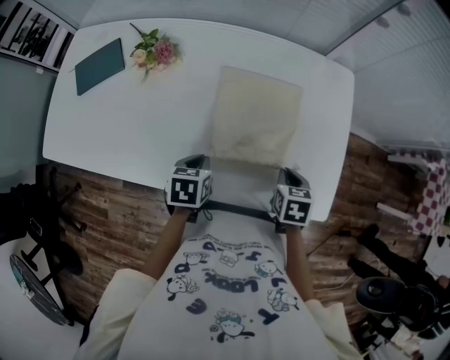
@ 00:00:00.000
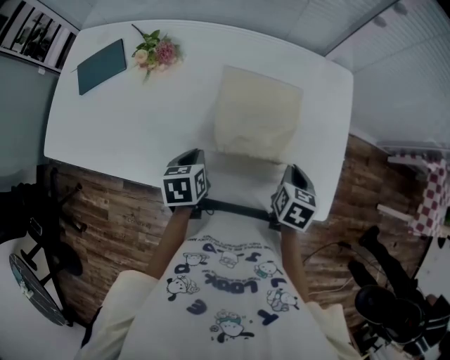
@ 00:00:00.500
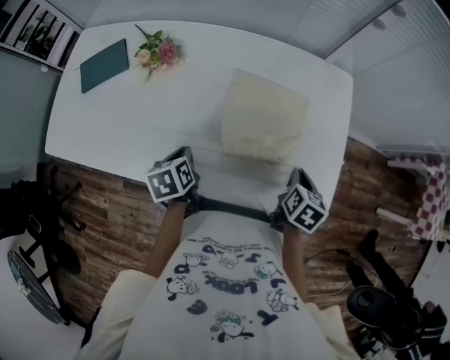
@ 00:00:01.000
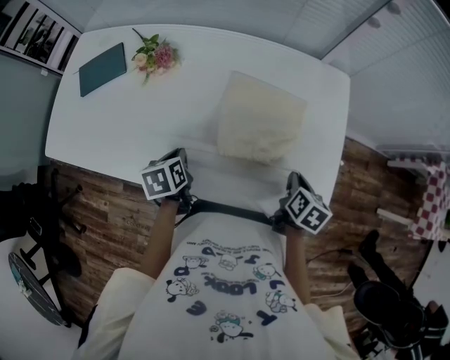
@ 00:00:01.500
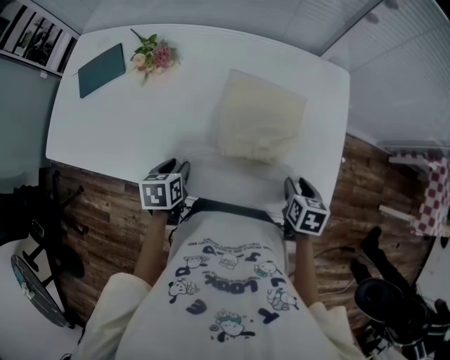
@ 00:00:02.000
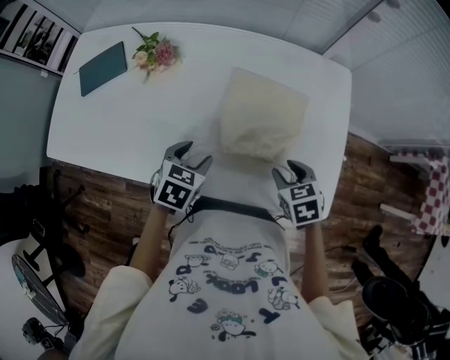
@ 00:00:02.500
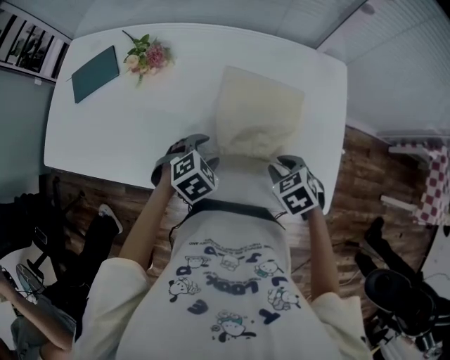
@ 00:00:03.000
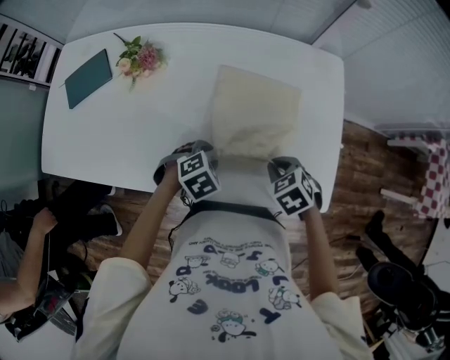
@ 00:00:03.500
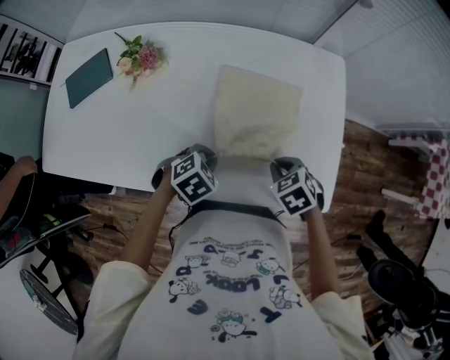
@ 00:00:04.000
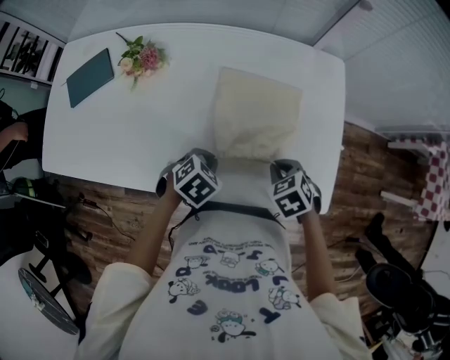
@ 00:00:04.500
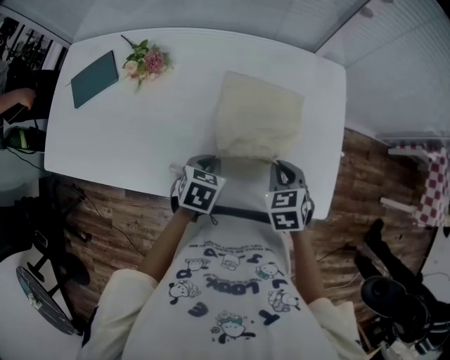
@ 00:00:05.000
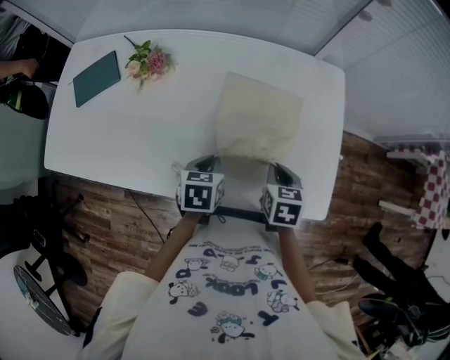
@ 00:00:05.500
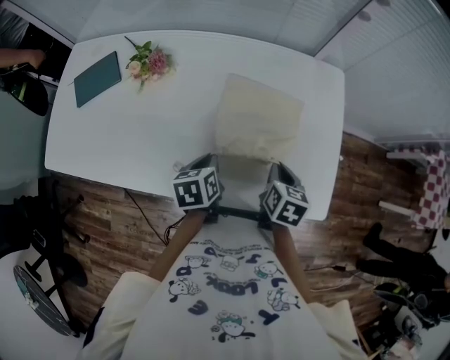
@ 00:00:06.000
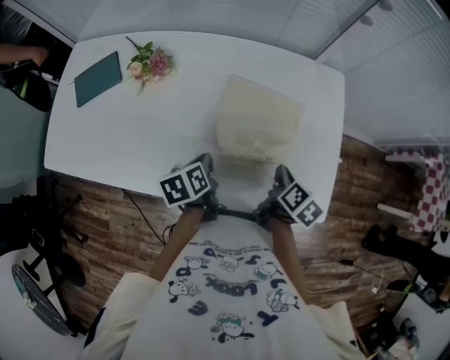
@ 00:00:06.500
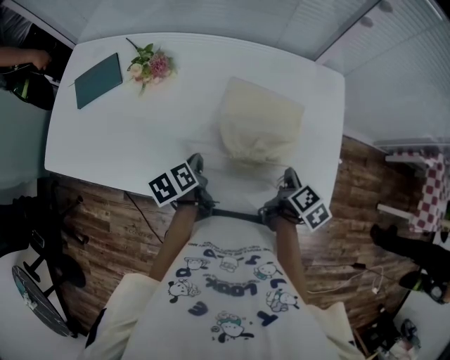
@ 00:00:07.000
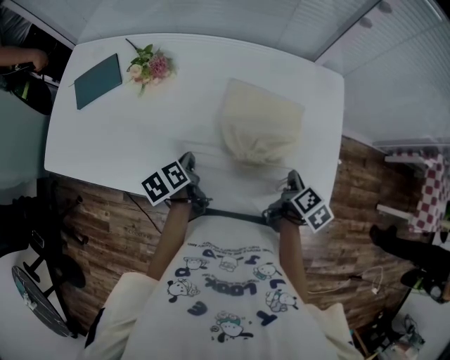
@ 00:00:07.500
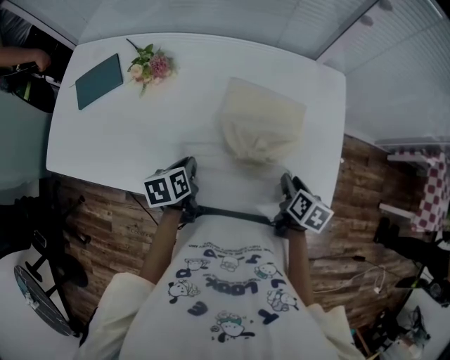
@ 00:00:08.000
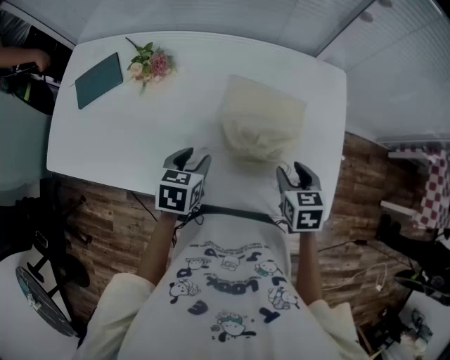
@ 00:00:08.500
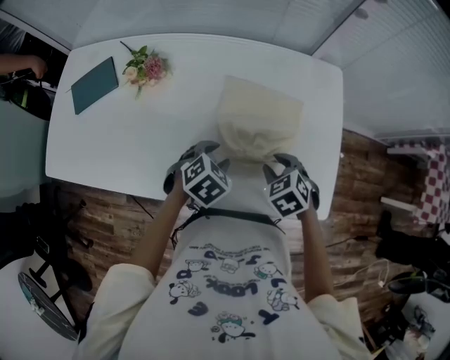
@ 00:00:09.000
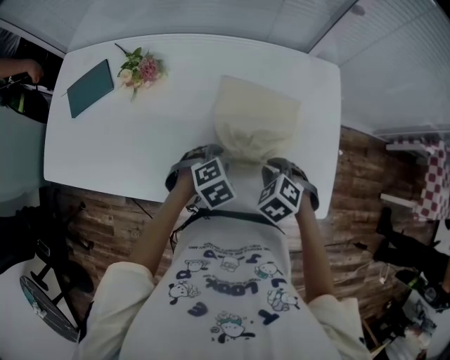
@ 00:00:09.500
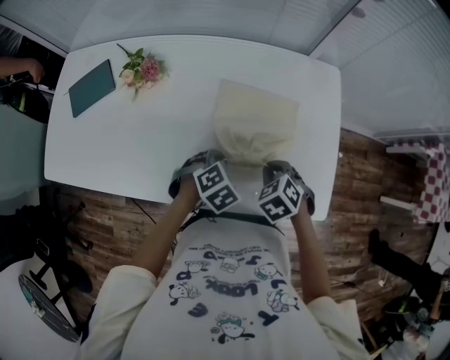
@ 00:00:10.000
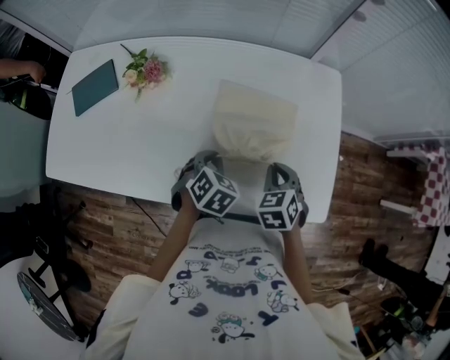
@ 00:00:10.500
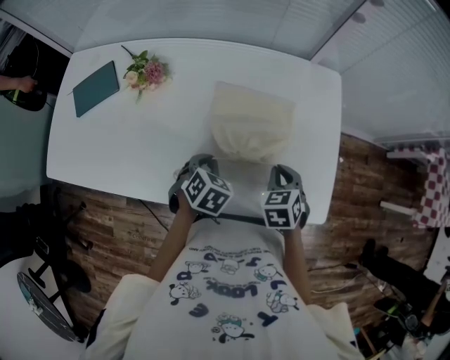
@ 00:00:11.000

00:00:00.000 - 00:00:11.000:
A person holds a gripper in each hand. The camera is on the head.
00:00:00.000 - 00:00:02.000: The left gripper is displaced to the left by about 5 cm, and opens its fingers. Meanwhile the right gripper travels to the right by approximately 5 cm, and opens up.
00:00:02.000 - 00:00:03.500: The right gripper goes approximately 10 cm to the left, twists some 40 degrees counterclockwise, seen from behind, and closes its fingers. Meanwhile the left gripper goes some 10 cm to the right, and twists roughly 70 degrees clockwise, seen from behind.
00:00:03.500 - 00:00:05.500: The left gripper rotates around the line of its fingers by some 60 degrees, counterclockwise from behind, and closes, while the right gripper swivels some 40 degrees.
00:00:05.500 - 00:00:07.500: The right gripper shifts about 10 cm to the right, and twists approximately 50 degrees clockwise, seen from behind; the left gripper moves to the left, about 10 cm, and twists approximately 40 degrees counterclockwise, seen from behind.
00:00:07.500 - 00:00:09.000: The left gripper travels to the right by roughly 10 cm, rolls clockwise, seen from behind, by some 90 degrees, and opens its fingers. The right gripper heads to the left, covering some 10 cm, rolls counterclockwise, seen from behind, by about 90 degrees, and opens up.
00:00:09.000 - 00:00:11.000: The right gripper turns by some 20 degrees, and closes its fingers, while the left gripper closes its fingers.

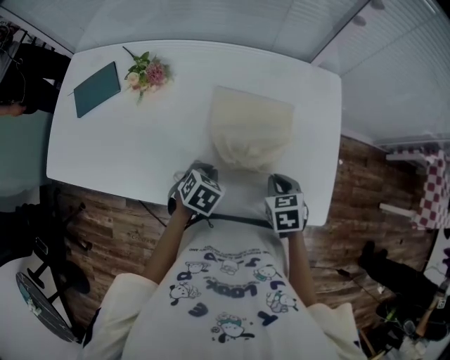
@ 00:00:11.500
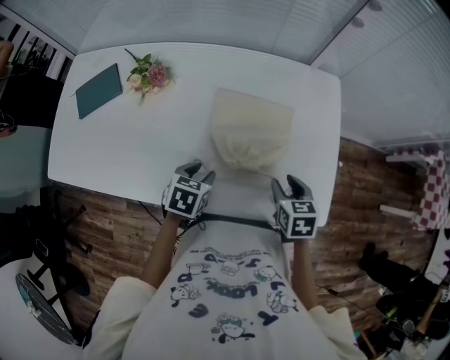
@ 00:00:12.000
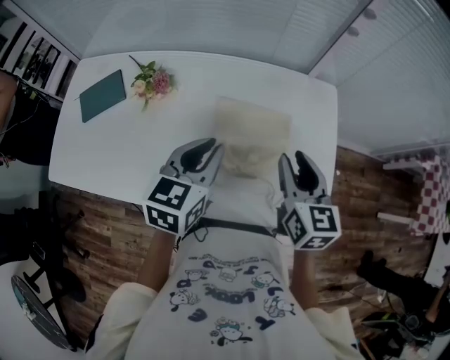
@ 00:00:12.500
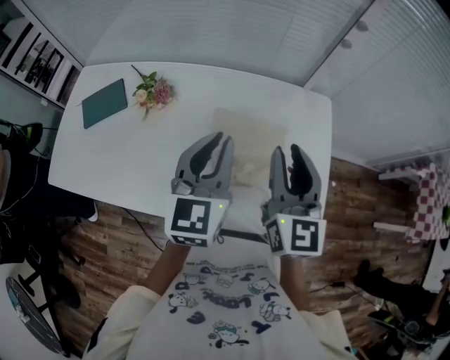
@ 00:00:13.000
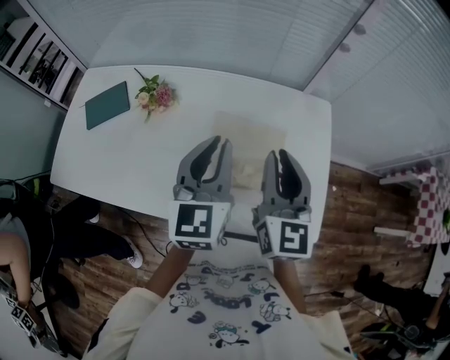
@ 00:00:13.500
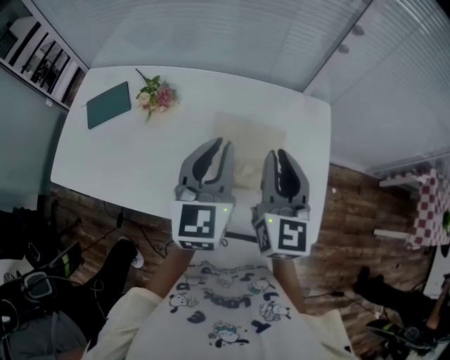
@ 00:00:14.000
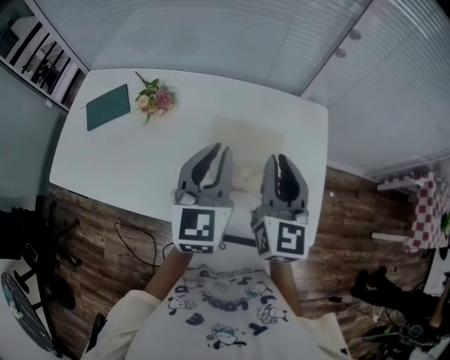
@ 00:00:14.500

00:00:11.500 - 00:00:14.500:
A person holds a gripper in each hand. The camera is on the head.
00:00:11.500 - 00:00:13.000: Both grippers travel together upward, some 30 cm. The left gripper points its fingers about 60 degrees further upward, and opens, then closes again. Meanwhile the right gripper points its fingers some 60 degrees further upward, and opens its fingers.
00:00:13.000 - 00:00:14.500: There are only small adjustments of the grippers.

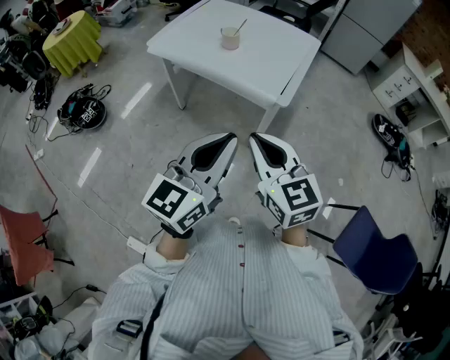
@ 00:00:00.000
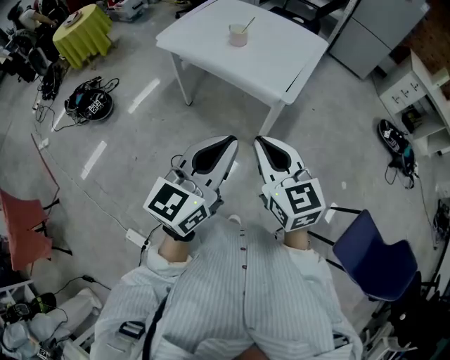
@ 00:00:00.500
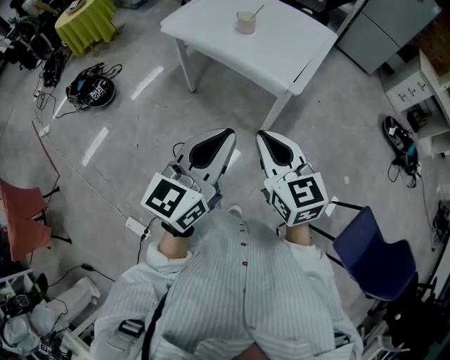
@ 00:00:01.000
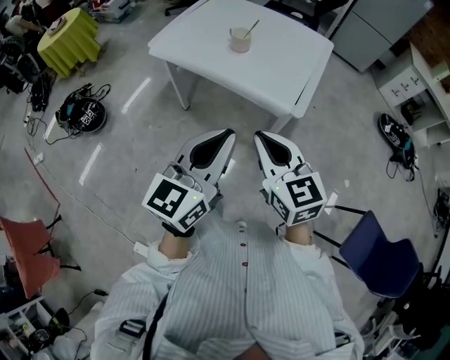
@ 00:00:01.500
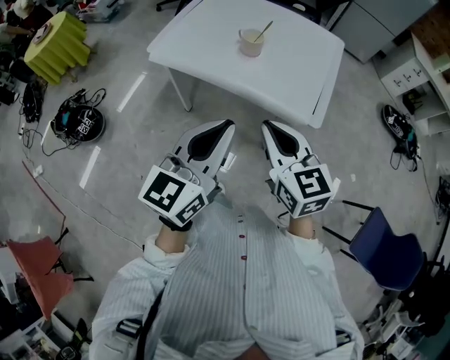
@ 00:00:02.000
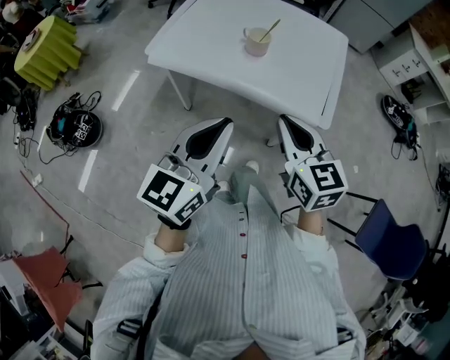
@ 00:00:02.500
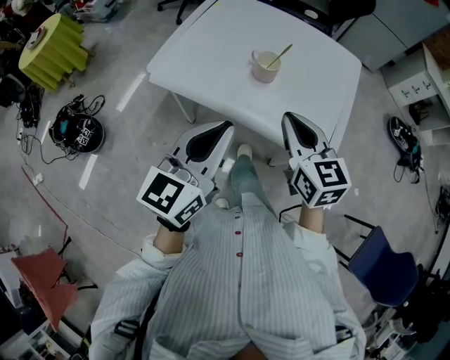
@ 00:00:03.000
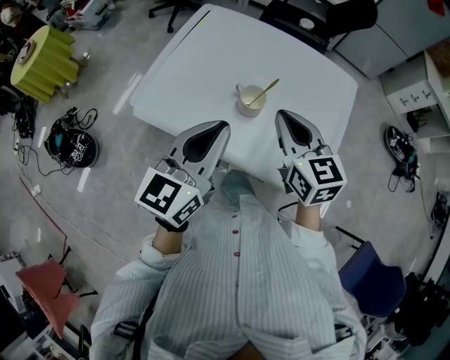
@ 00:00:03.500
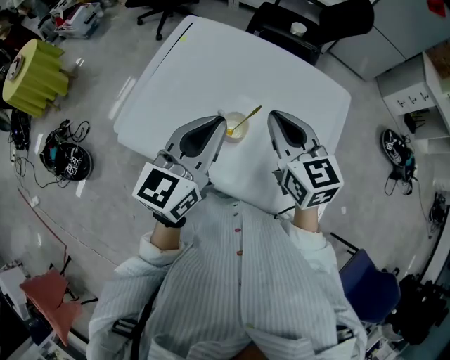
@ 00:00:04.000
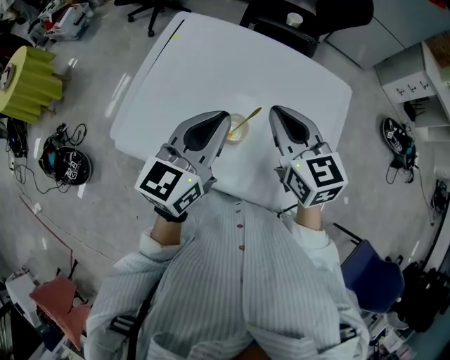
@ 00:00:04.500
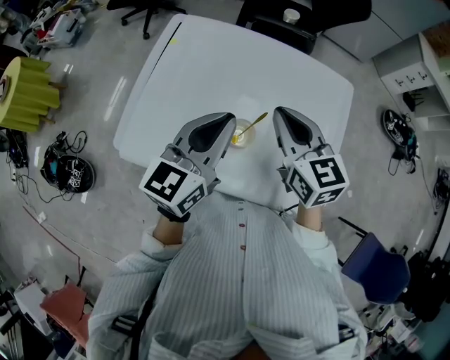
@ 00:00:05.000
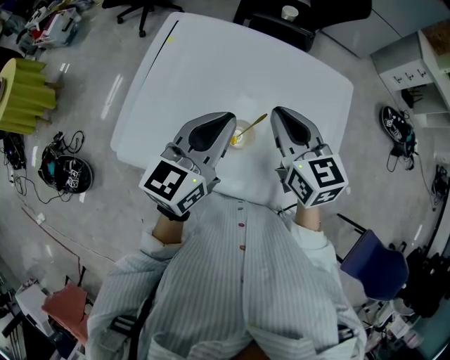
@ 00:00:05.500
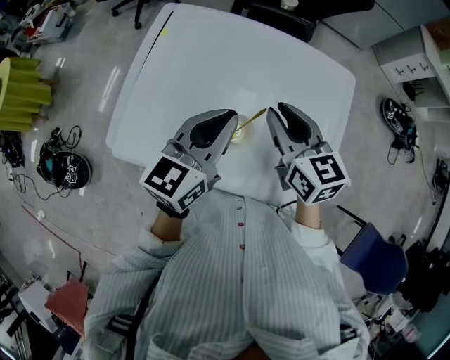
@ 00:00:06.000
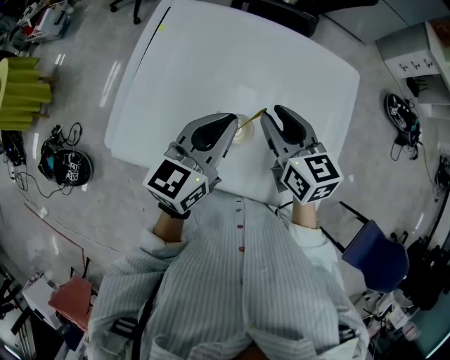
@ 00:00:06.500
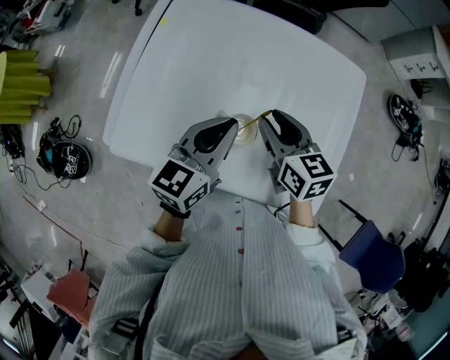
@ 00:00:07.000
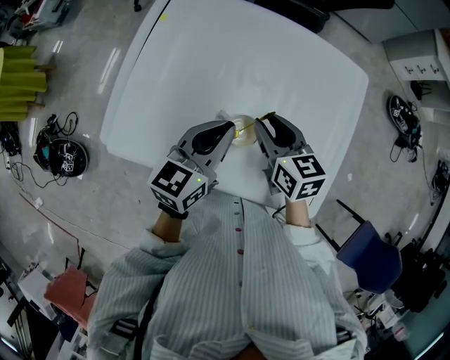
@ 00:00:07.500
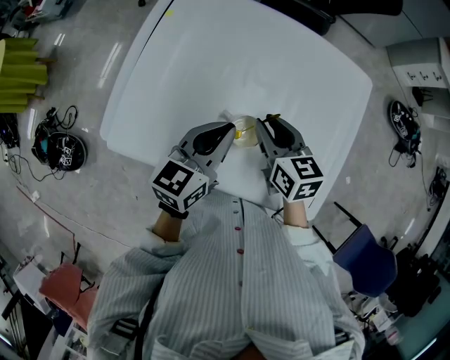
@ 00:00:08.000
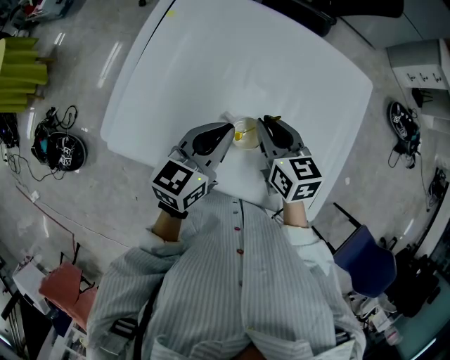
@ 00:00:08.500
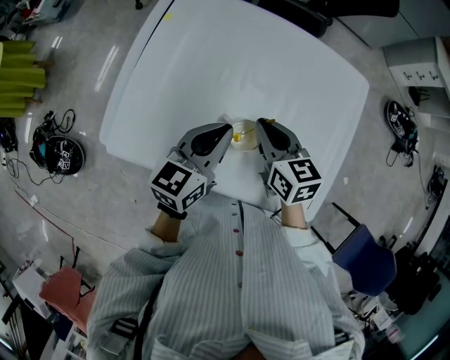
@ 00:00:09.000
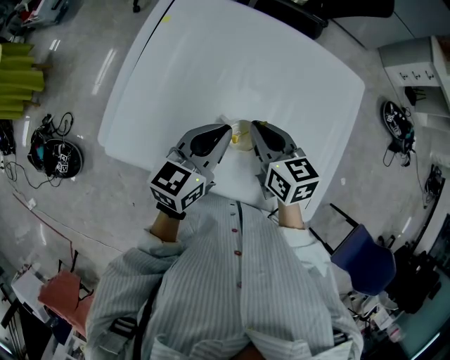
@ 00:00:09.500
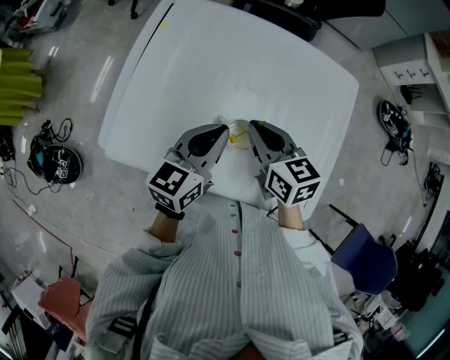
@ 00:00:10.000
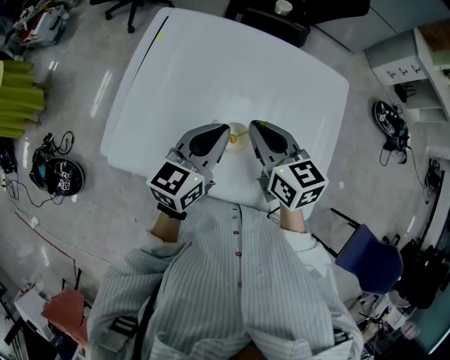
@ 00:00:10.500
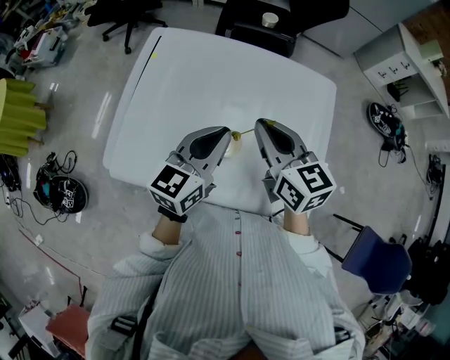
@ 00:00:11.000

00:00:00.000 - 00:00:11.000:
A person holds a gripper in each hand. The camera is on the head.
00:00:00.000 - 00:00:02.000: The two grippers go some 25 cm forward and to the left.
00:00:02.000 - 00:00:03.500: Both grippers travel together forward, roughly 30 cm.
00:00:03.500 - 00:00:05.500: Both grippers move forward, approximately 15 cm.
00:00:05.500 - 00:00:07.500: Both grippers travel together downward, roughly 10 cm. The right gripper opens up.
00:00:07.500 - 00:00:09.000: The right gripper closes.
00:00:09.000 - 00:00:11.000: The left gripper goes about 10 cm upward. The right gripper heads upward, covering roughly 15 cm.

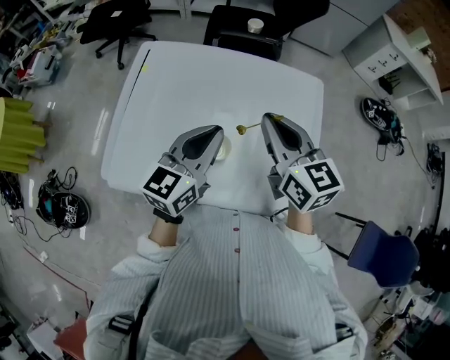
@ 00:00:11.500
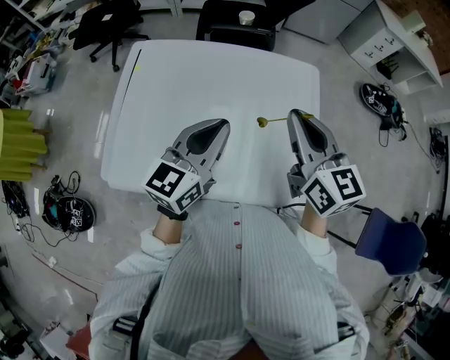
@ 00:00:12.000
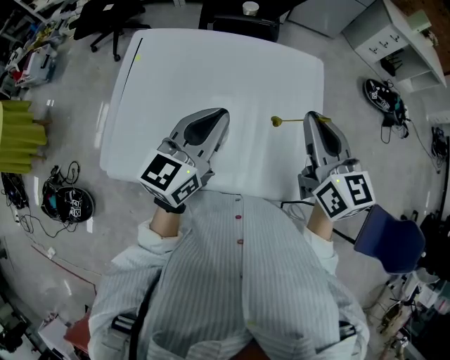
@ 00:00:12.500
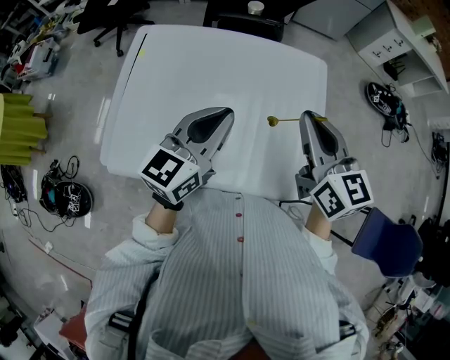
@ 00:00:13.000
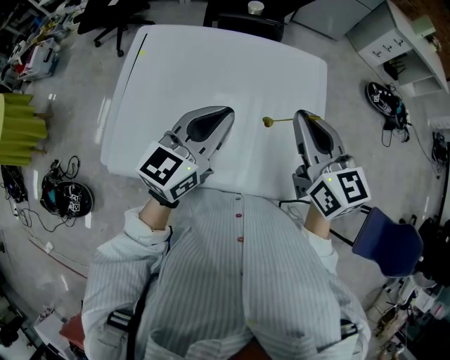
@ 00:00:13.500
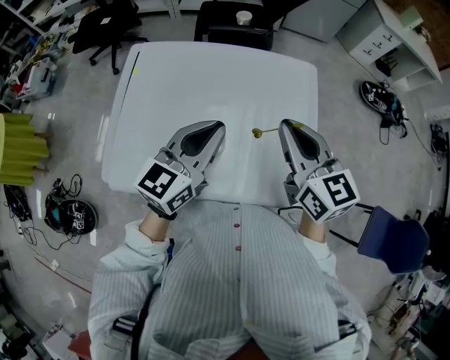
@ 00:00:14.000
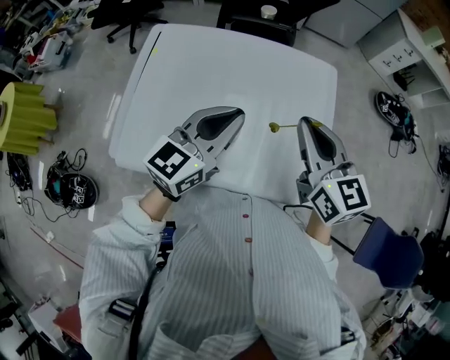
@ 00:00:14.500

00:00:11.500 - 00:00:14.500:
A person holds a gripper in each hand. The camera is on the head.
00:00:11.500 - 00:00:13.000: The right gripper shifts roughly 10 cm to the right.
00:00:13.000 - 00:00:14.500: The grippers move only a little.
